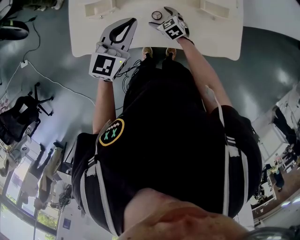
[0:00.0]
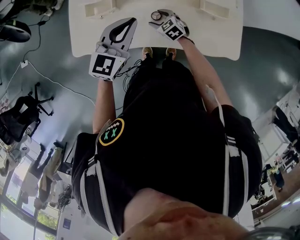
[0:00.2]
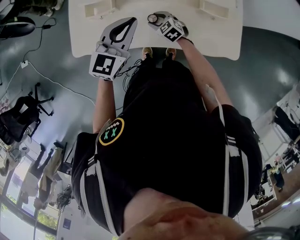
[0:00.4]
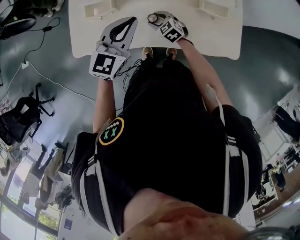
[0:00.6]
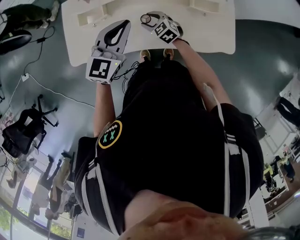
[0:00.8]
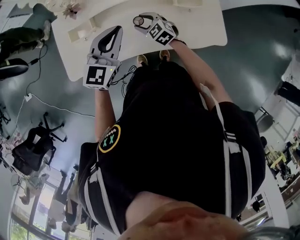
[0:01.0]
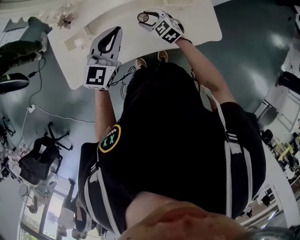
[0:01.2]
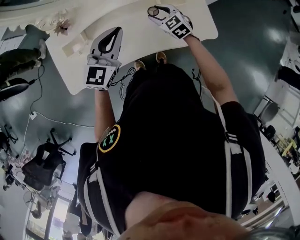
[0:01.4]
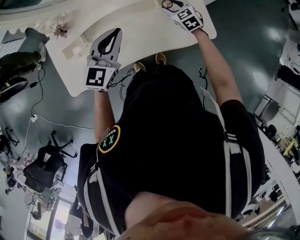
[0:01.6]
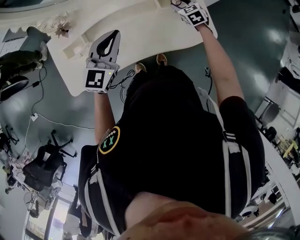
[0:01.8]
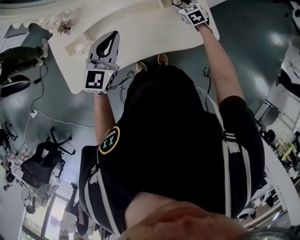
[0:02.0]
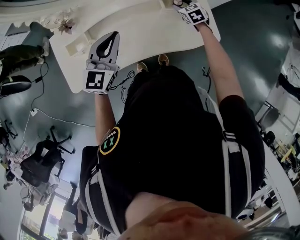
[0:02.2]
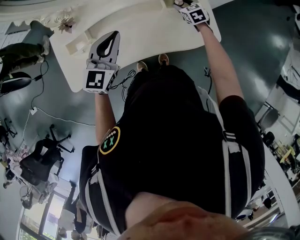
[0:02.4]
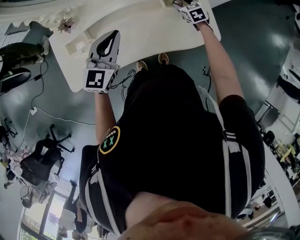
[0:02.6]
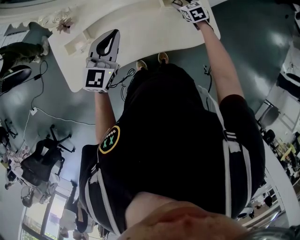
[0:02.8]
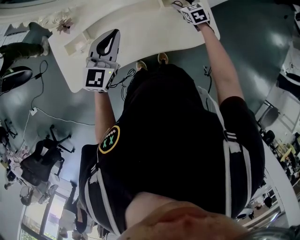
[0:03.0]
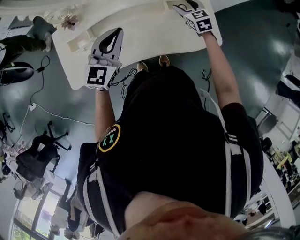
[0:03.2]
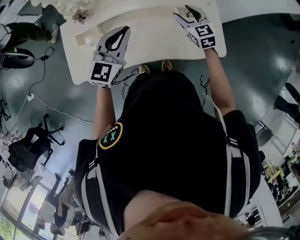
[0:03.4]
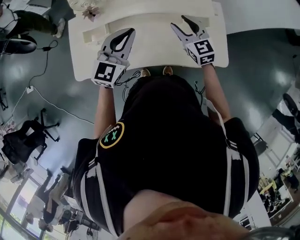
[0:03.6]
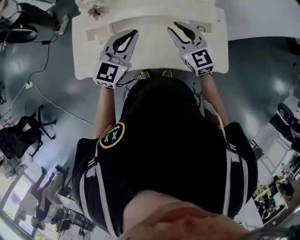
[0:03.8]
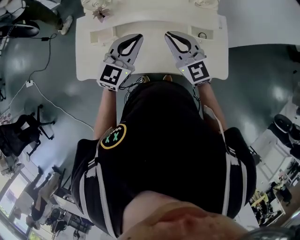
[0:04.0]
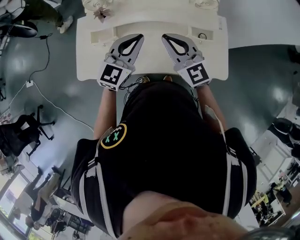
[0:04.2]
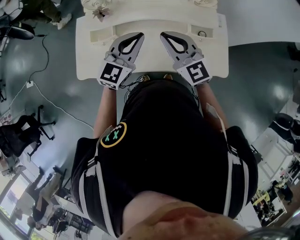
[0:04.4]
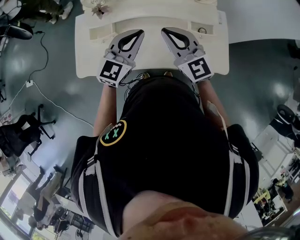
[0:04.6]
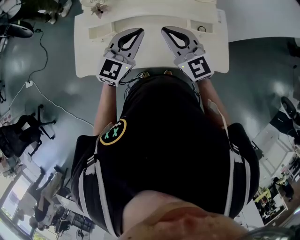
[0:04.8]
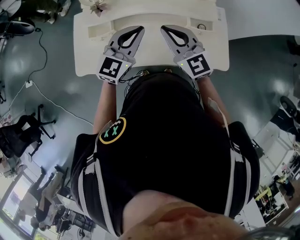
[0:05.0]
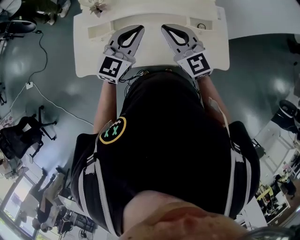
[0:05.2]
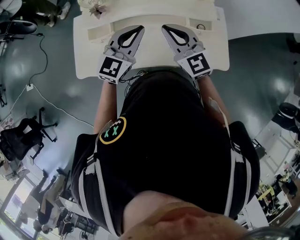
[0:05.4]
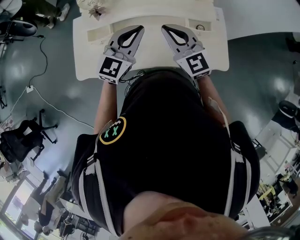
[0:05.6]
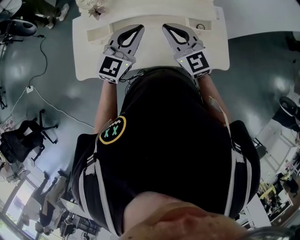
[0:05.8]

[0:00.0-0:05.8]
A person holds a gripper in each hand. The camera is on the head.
0:00.0 to 0:01.4: The left gripper travels to the right by approximately 10 cm, while the right gripper heads to the right and upward, covering some 20 cm, and closes.
0:01.4 to 0:02.8: The right gripper moves to the right and forward, some 15 cm.
0:02.8 to 0:04.4: The right gripper is displaced upward, to the left and backward by some 40 cm, tilts its fingers roughly 40 degrees upward, and closes up.
0:04.4 to 0:05.8: The grippers make only small movements.

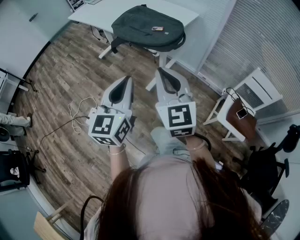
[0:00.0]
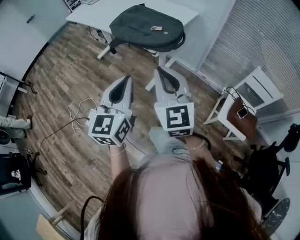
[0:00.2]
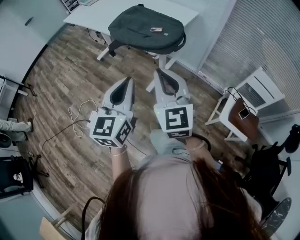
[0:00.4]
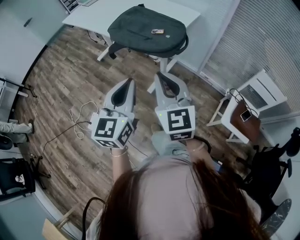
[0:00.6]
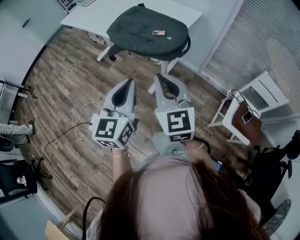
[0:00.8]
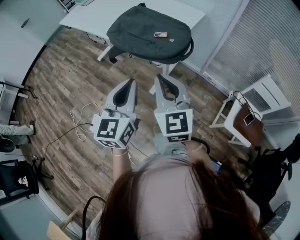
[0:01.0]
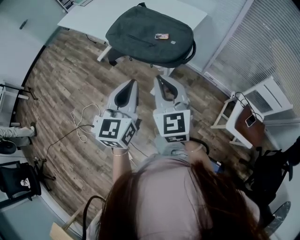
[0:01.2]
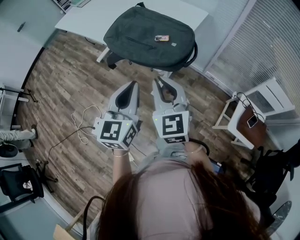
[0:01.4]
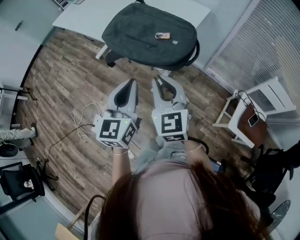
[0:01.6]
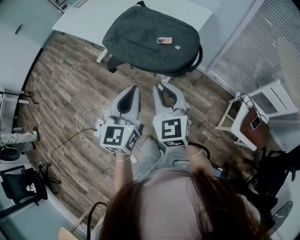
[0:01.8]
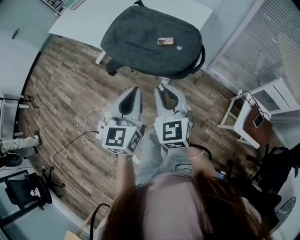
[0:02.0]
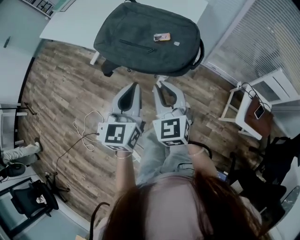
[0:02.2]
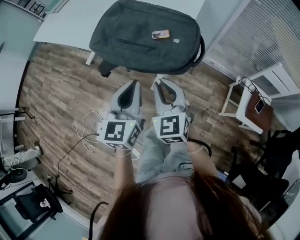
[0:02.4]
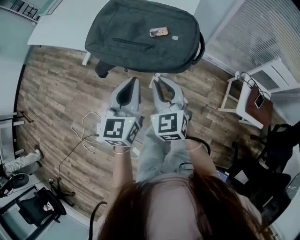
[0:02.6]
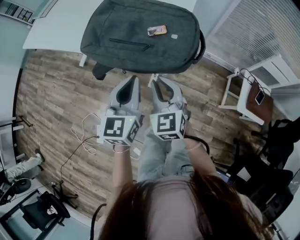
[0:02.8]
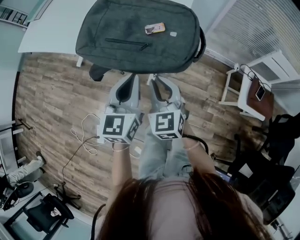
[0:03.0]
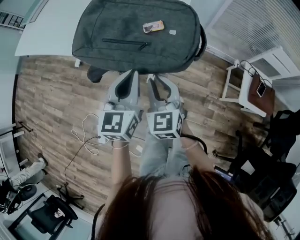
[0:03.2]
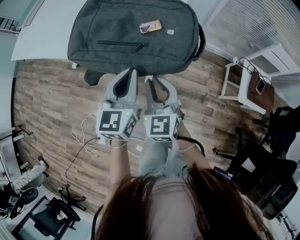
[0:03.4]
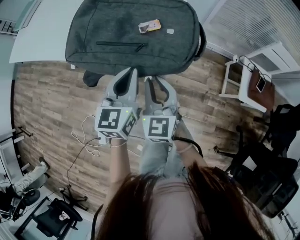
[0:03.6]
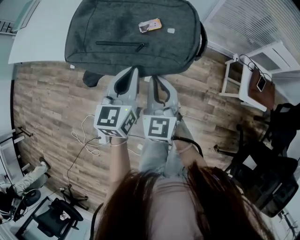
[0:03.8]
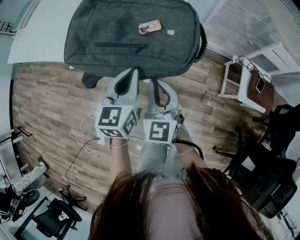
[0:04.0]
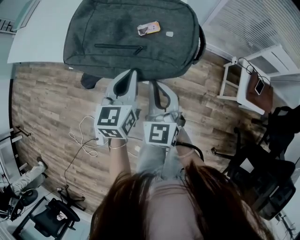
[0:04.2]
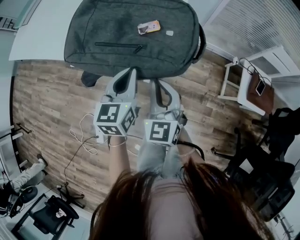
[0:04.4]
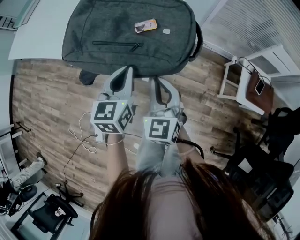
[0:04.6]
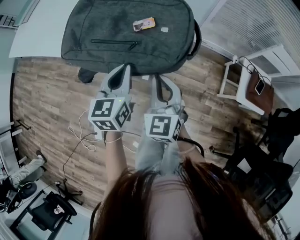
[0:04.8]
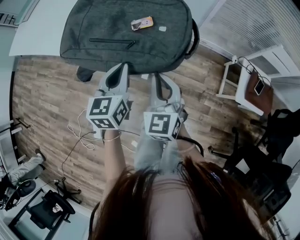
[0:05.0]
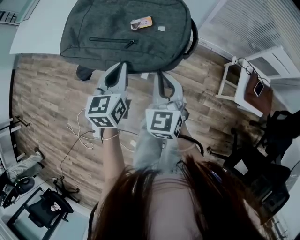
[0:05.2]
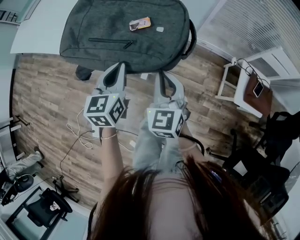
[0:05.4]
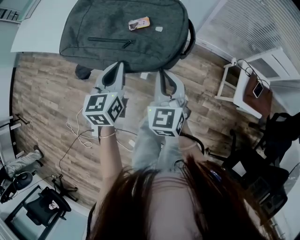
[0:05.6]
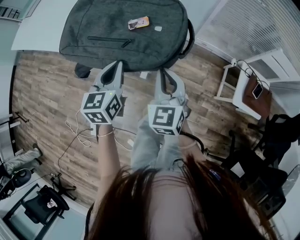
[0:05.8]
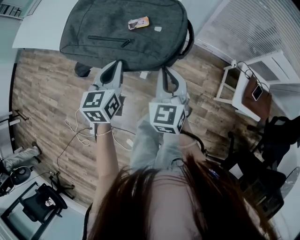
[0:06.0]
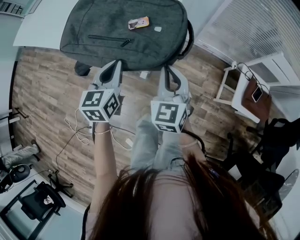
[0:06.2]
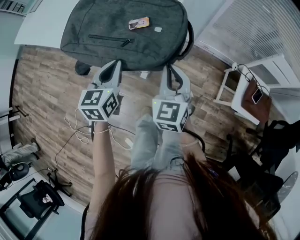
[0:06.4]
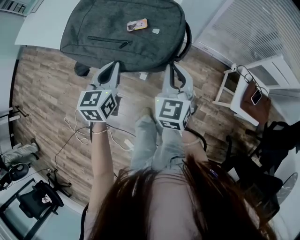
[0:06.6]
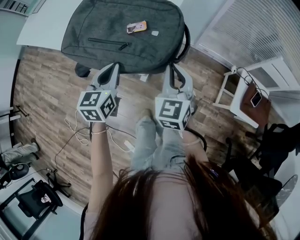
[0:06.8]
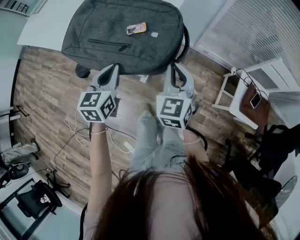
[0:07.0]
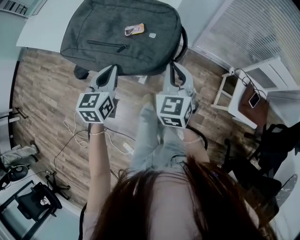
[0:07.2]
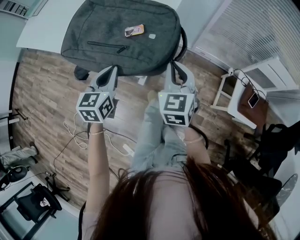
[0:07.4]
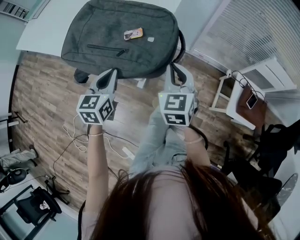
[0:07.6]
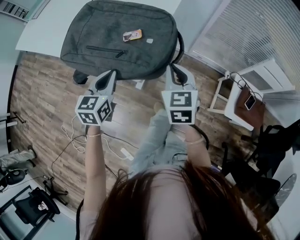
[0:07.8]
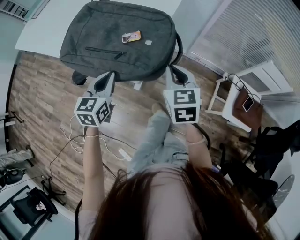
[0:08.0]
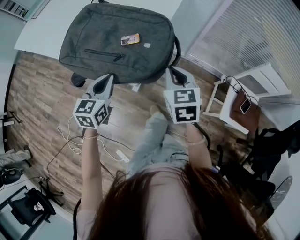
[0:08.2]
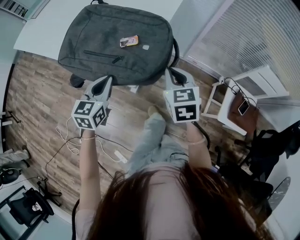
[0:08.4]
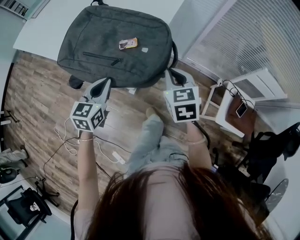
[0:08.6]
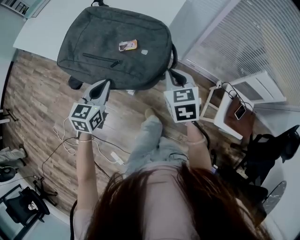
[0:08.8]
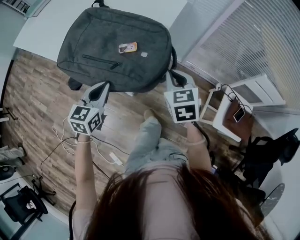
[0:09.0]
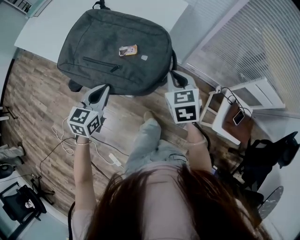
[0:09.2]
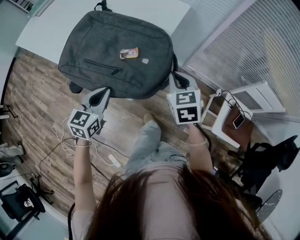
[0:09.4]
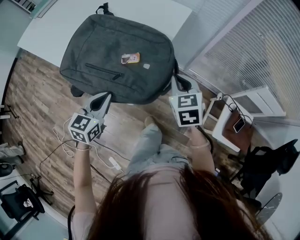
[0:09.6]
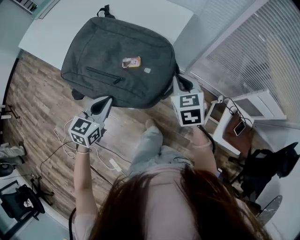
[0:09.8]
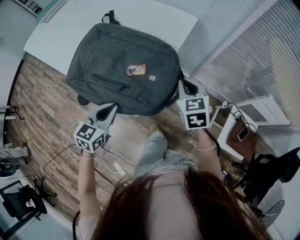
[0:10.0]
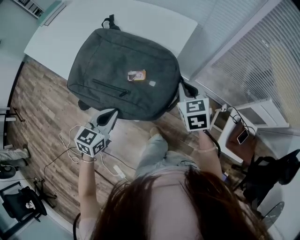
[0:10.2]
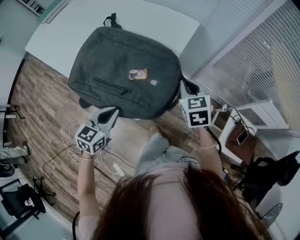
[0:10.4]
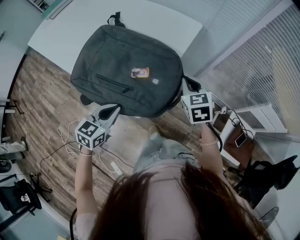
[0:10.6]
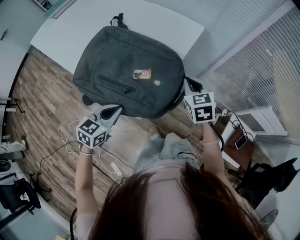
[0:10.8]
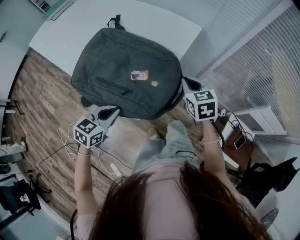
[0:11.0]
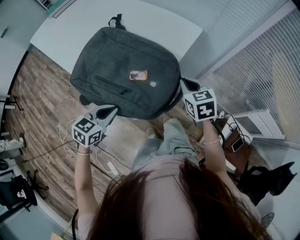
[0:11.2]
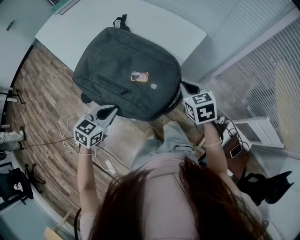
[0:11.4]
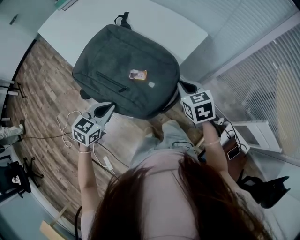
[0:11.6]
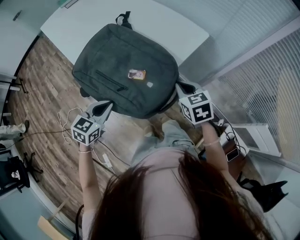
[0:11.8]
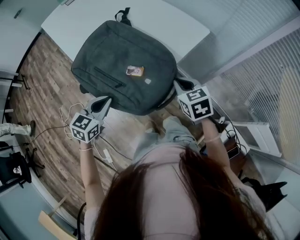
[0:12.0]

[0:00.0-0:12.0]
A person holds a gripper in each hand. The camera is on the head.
0:00.0 to 0:01.6: The left gripper heads forward, covering approximately 20 cm; the right gripper travels forward and downward by roughly 25 cm.
0:01.6 to 0:03.0: The right gripper moves downward and forward, roughly 15 cm; the left gripper shifts some 15 cm forward and downward.
0:03.0 to 0:04.4: The left gripper ends up roughly 5 cm from where it was.
0:04.4 to 0:06.0: The right gripper shifts some 5 cm to the right.
0:06.0 to 0:07.6: The right gripper ends up roughly 5 cm from where it was.
0:07.6 to 0:09.0: There are only small adjustments of the grippers.
0:09.0 to 0:10.4: The right gripper is displaced forward by about 10 cm.
0:10.4 to 0:12.0: The right gripper turns by some 30 degrees.

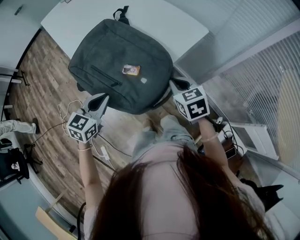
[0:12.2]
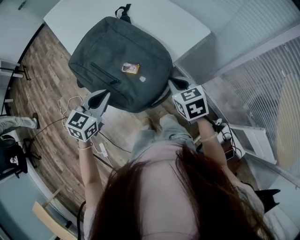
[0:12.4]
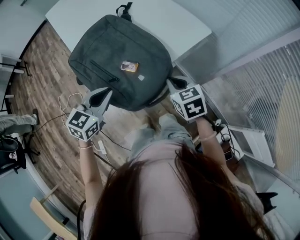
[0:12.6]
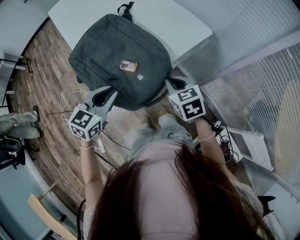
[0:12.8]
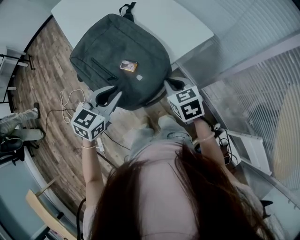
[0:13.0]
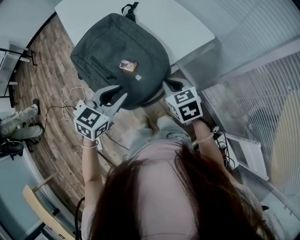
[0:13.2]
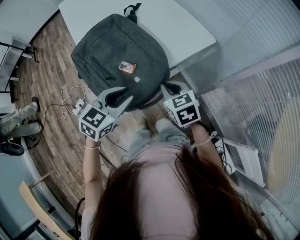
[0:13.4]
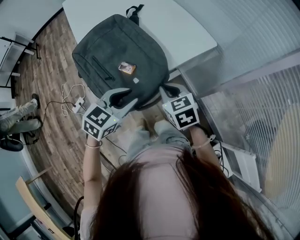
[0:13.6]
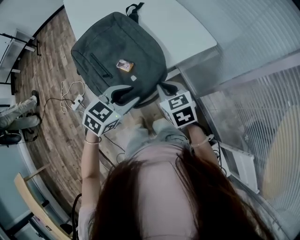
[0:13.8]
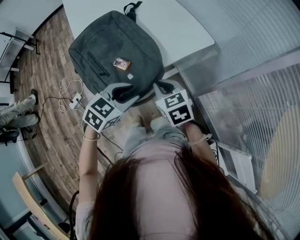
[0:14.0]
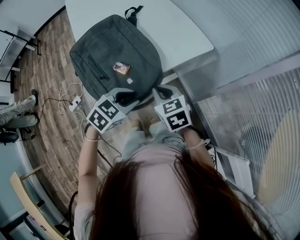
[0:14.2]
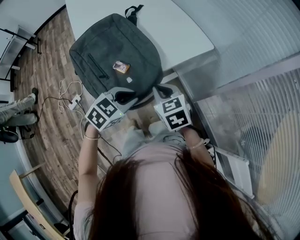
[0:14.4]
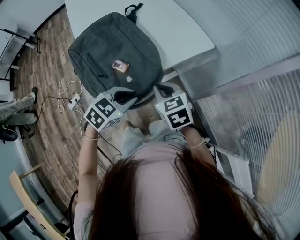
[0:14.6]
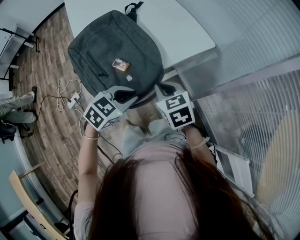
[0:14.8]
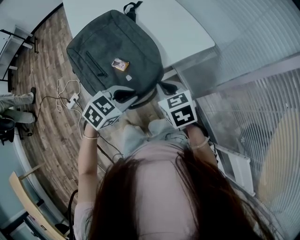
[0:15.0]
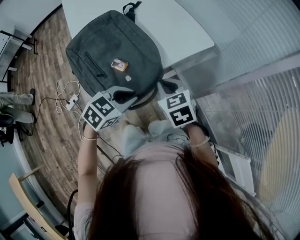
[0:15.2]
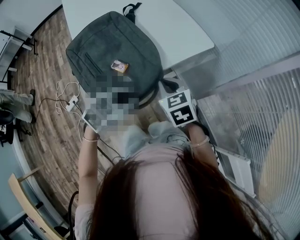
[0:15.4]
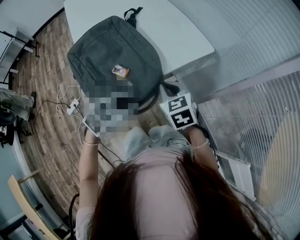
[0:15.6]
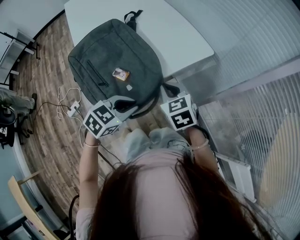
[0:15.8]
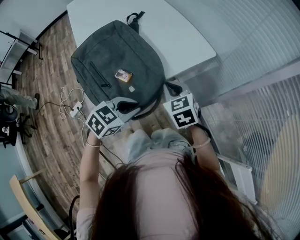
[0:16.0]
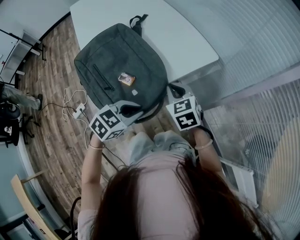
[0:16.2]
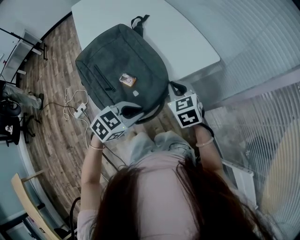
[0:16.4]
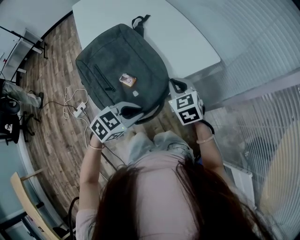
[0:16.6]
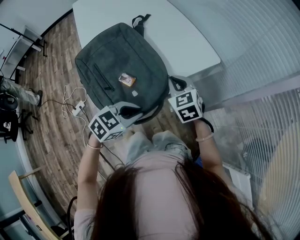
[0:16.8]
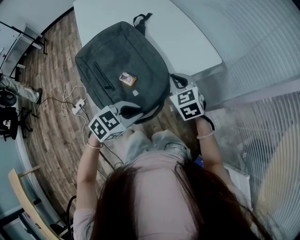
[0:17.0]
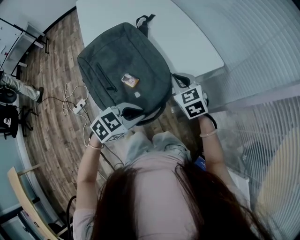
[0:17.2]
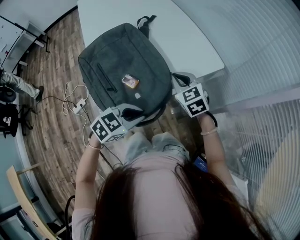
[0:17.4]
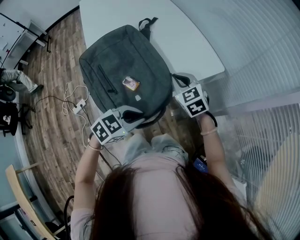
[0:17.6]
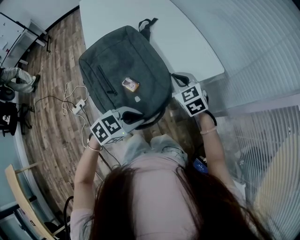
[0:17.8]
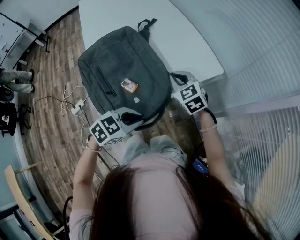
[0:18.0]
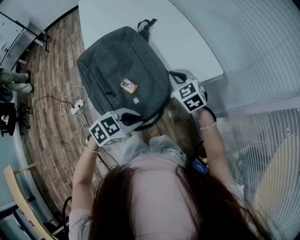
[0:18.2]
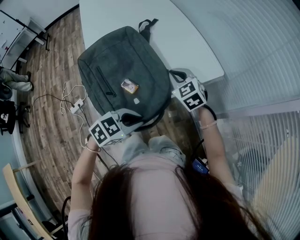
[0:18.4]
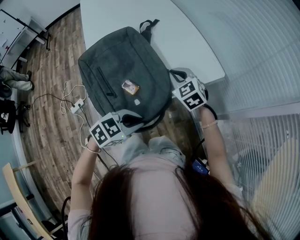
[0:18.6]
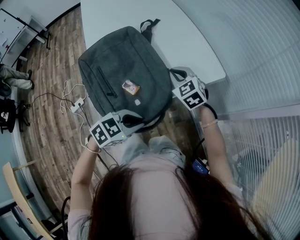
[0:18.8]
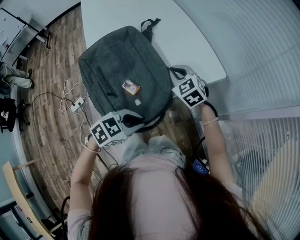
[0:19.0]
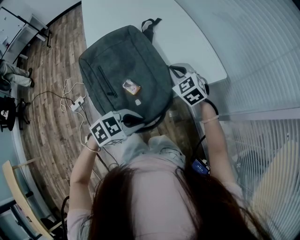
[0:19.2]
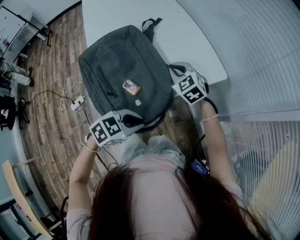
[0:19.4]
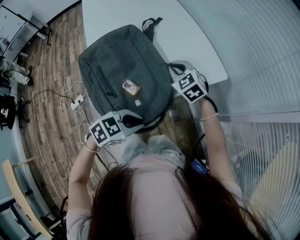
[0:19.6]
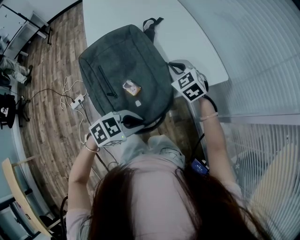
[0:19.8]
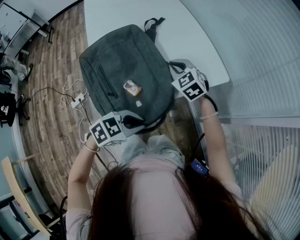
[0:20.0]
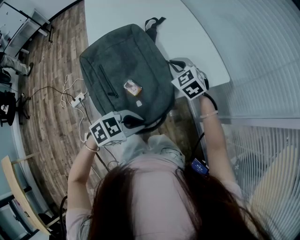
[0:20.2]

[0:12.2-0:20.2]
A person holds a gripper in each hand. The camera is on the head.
0:12.2 to 0:13.8: The left gripper shifts some 15 cm to the right, and opens its fingers.
0:13.8 to 0:15.4: The left gripper closes its fingers.
0:15.4 to 0:17.0: The right gripper is displaced forward by about 10 cm.
0:17.0 to 0:18.6: The right gripper heads forward, covering roughly 5 cm.
0:18.6 to 0:20.2: The right gripper shifts by about 5 cm.
